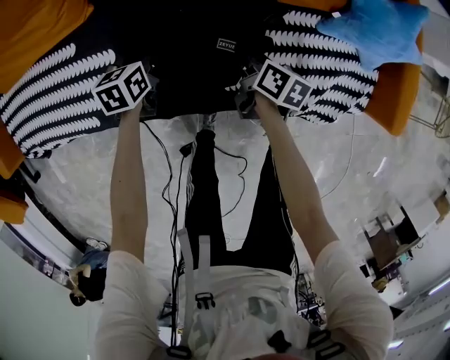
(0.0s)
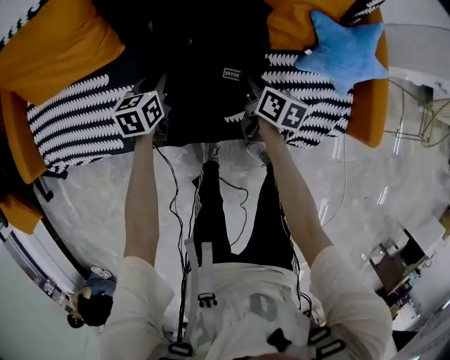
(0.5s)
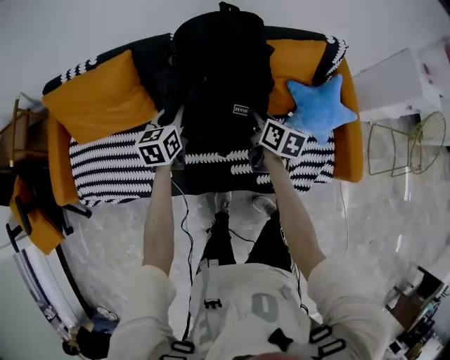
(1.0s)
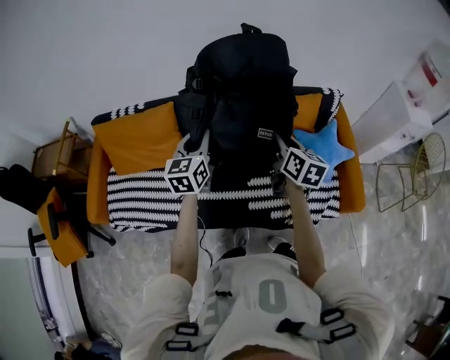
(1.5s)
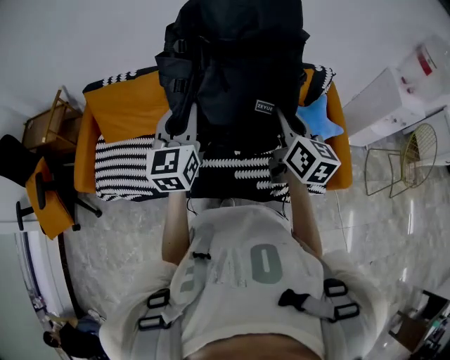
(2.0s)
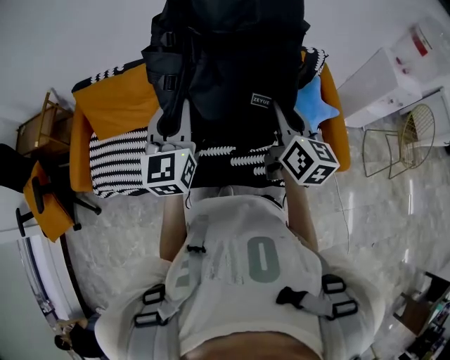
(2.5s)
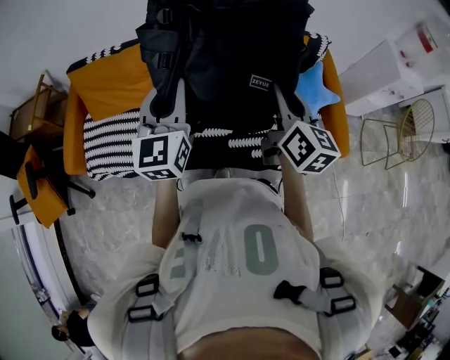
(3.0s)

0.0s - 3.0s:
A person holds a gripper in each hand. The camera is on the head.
0.0s - 1.5s: Both grippers move upward, some 50 cm. The left gripper points its fingers roughly 30 degrees further upward; the right gripper swivels some 30 degrees.
1.5s - 3.0s: Both grippers move backward and upward, some 15 cm.

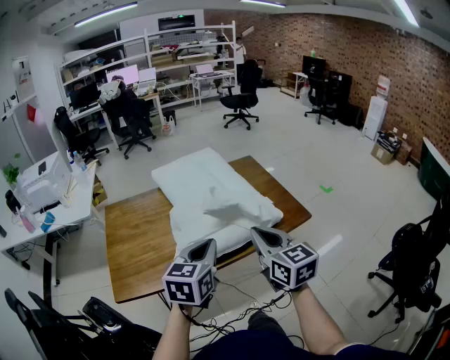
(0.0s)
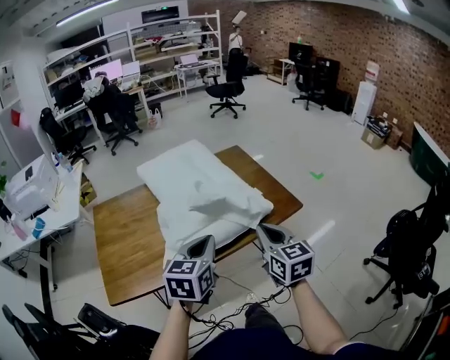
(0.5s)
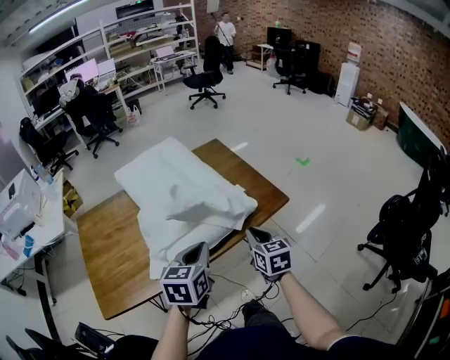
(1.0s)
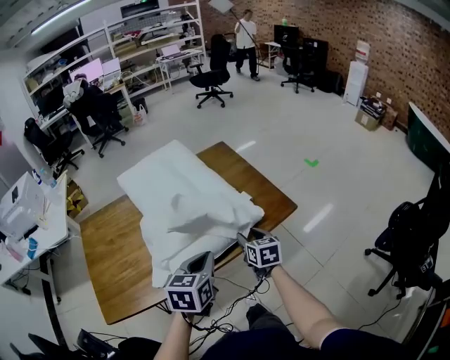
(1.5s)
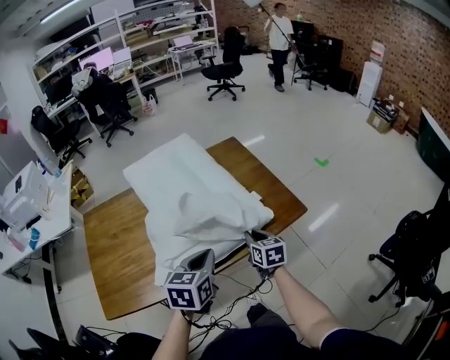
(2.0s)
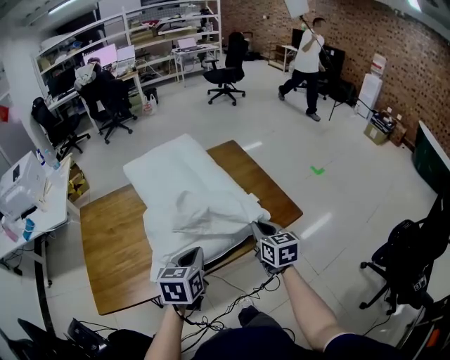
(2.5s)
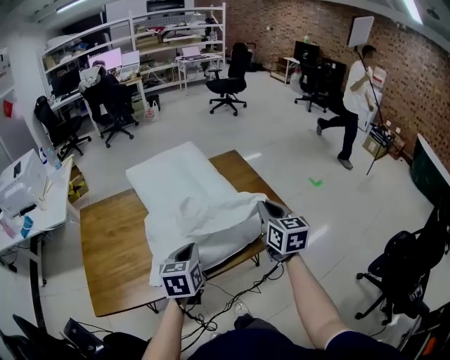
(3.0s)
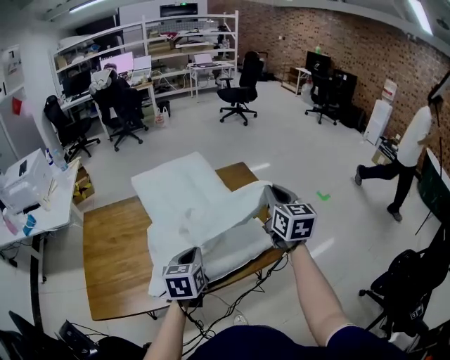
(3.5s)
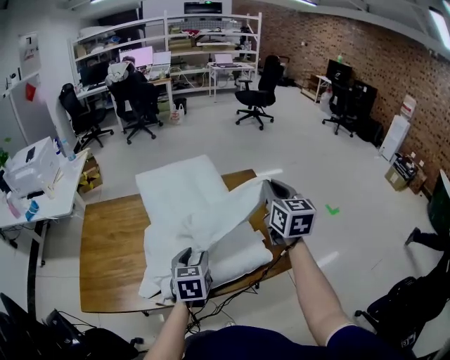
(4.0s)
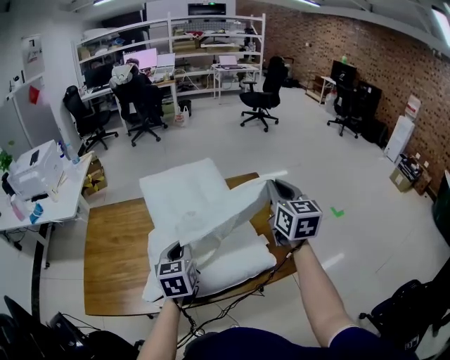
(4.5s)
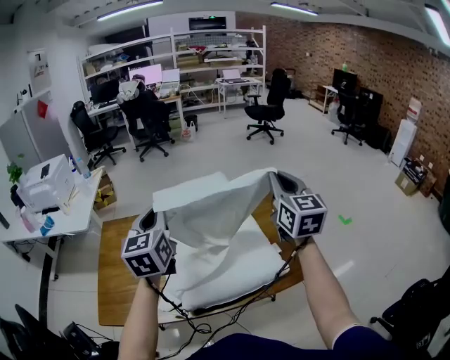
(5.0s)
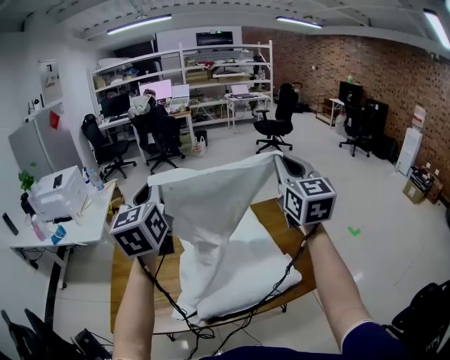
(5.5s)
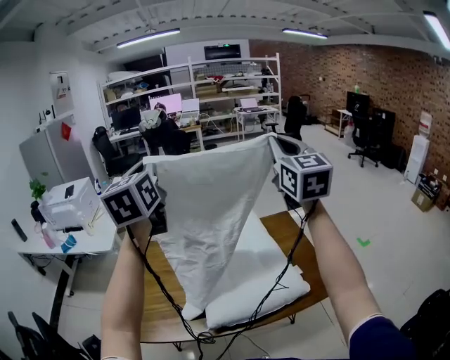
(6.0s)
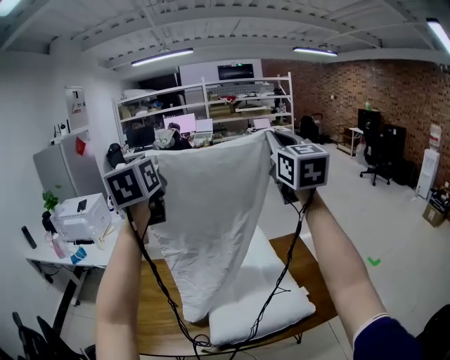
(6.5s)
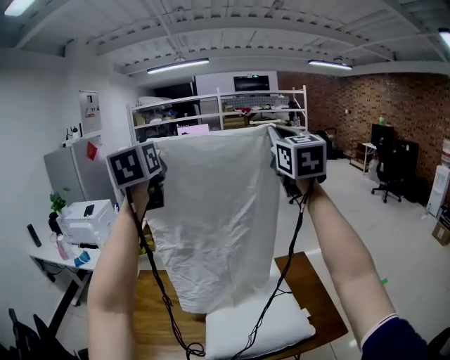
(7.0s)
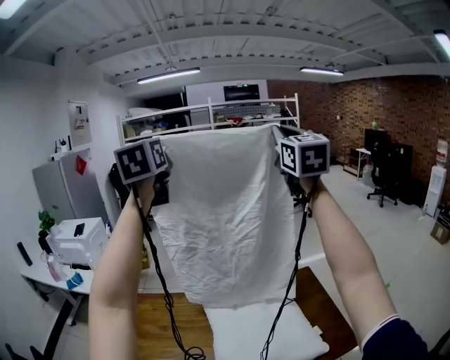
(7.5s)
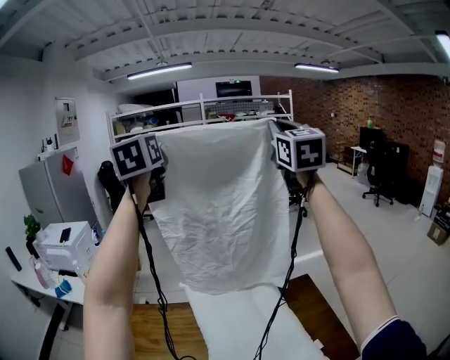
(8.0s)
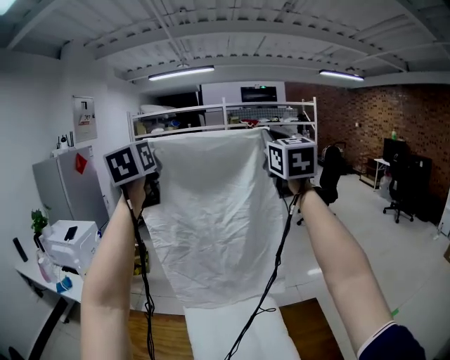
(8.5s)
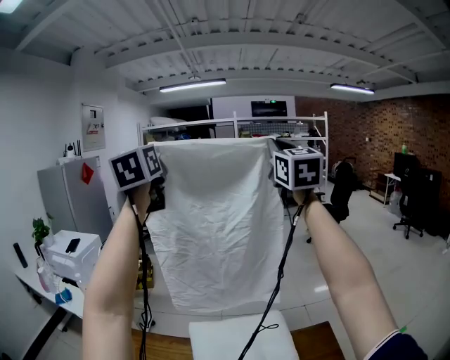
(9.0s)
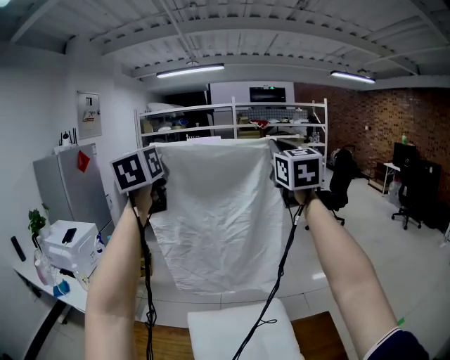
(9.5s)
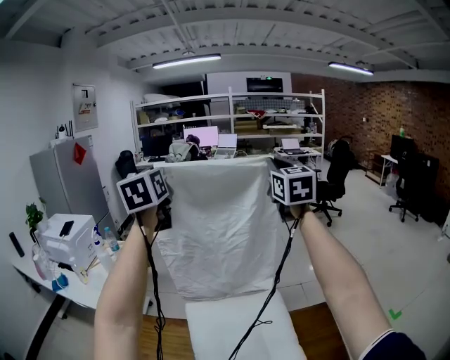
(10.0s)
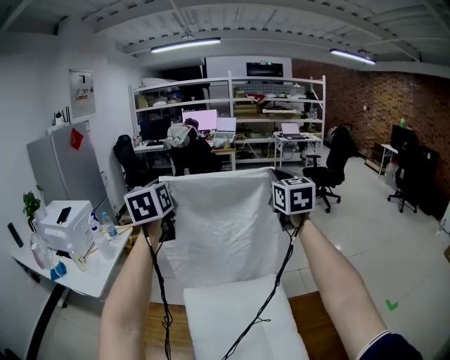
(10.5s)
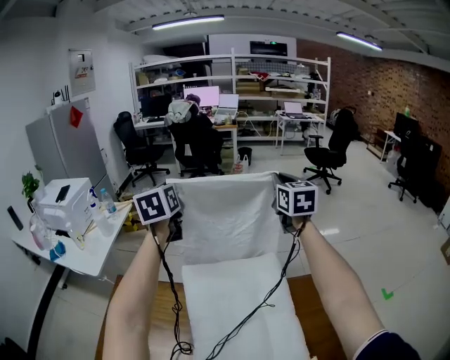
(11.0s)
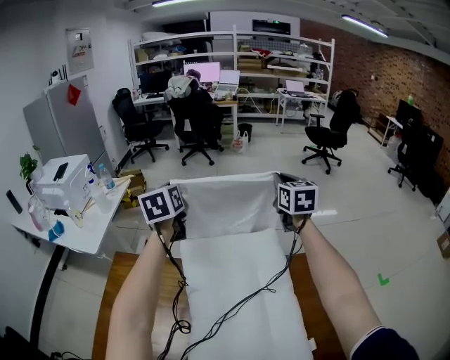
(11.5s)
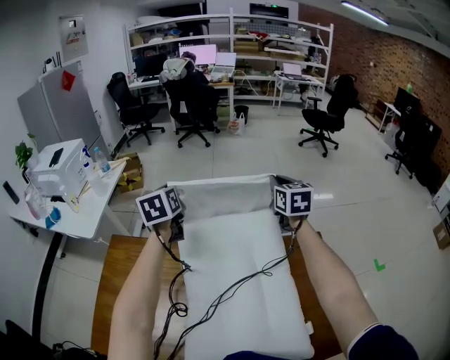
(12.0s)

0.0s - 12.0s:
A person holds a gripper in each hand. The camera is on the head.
0.0s - 2.0s: The right gripper moves downward and forward, about 30 cm, turns by roughly 30 degrees, and opens, then closes once more; the left gripper goes approximately 10 cm downward and forward.
2.0s - 4.0s: The right gripper heads upward and forward, covering about 35 cm, and swivels about 30 degrees, while the left gripper goes some 10 cm forward, turns by some 20 degrees, and opens.
4.0s - 6.0s: The left gripper moves upward and to the left, about 50 cm, tilts its fingers roughly 40 degrees upward, and closes. Meanwhile the right gripper heads upward and to the left, covering approximately 30 cm, and swivels approximately 20 degrees.
6.0s - 8.0s: Both grippers move forward and upward, about 30 cm.
8.0s - 10.0s: The two grippers go roughly 20 cm forward and downward.
10.0s - 12.0s: Both grippers travel together downward, roughly 35 cm. The right gripper rotates approximately 30 degrees; the left gripper rotates approximately 30 degrees.

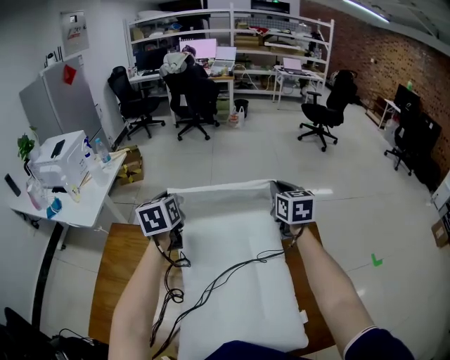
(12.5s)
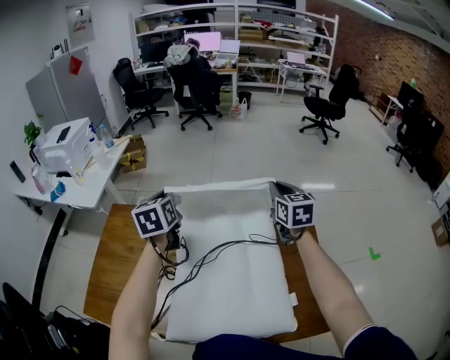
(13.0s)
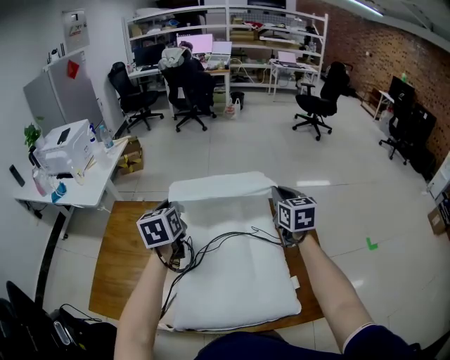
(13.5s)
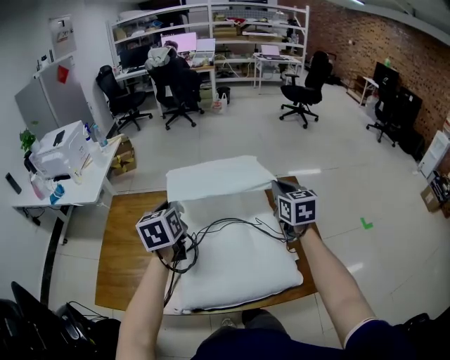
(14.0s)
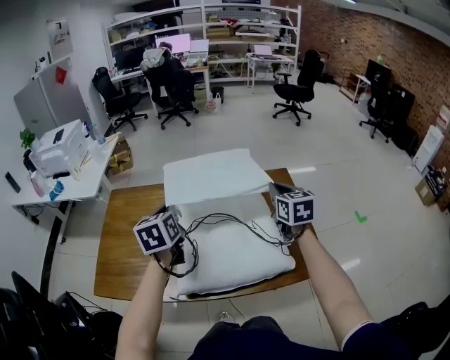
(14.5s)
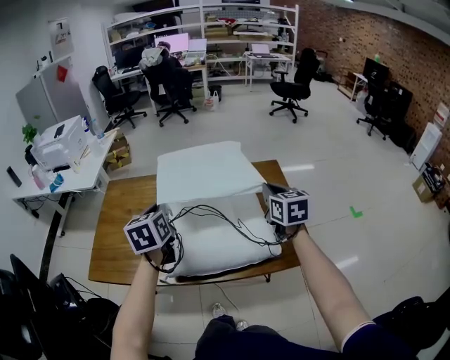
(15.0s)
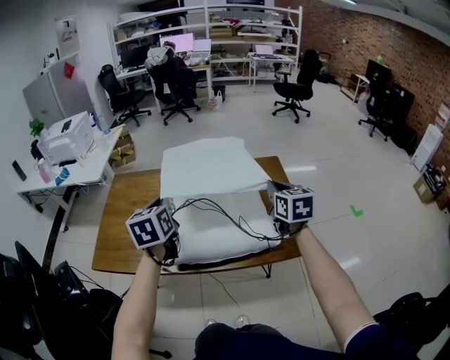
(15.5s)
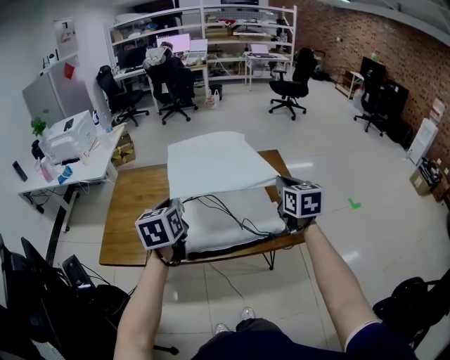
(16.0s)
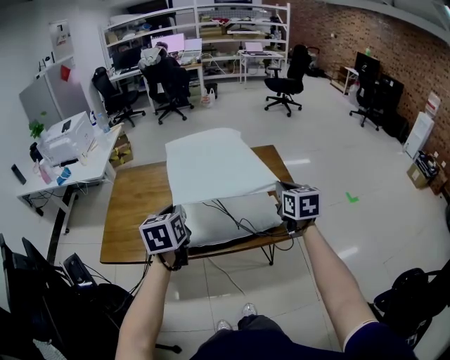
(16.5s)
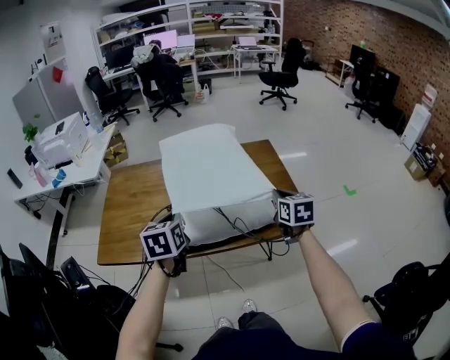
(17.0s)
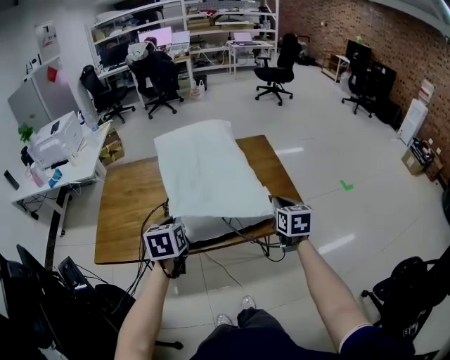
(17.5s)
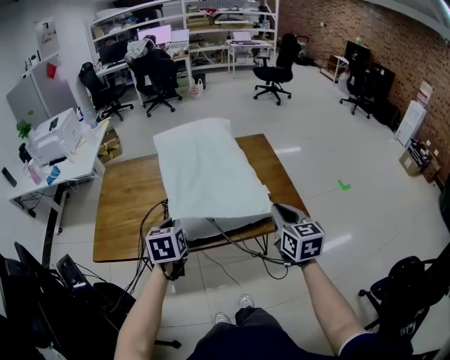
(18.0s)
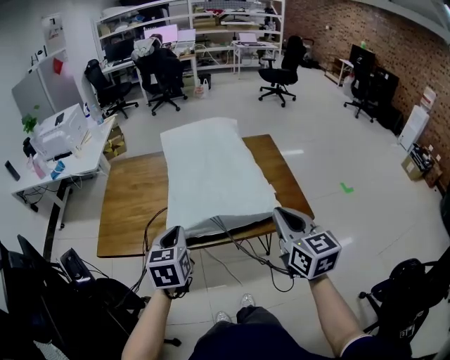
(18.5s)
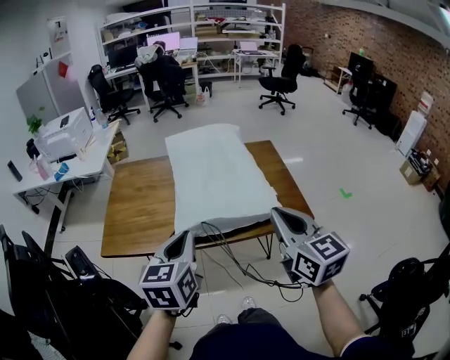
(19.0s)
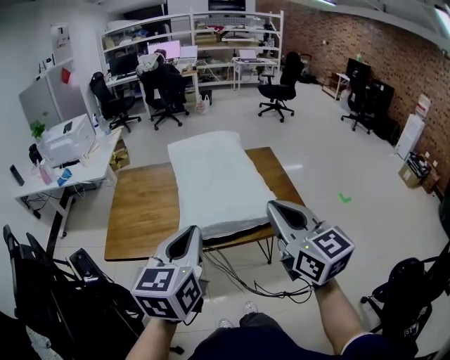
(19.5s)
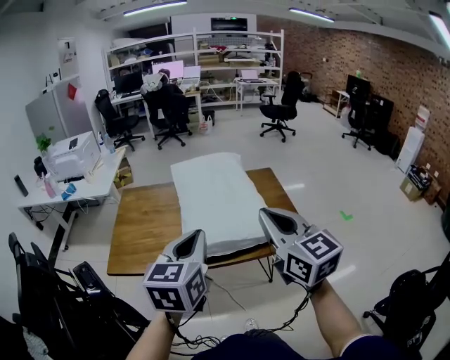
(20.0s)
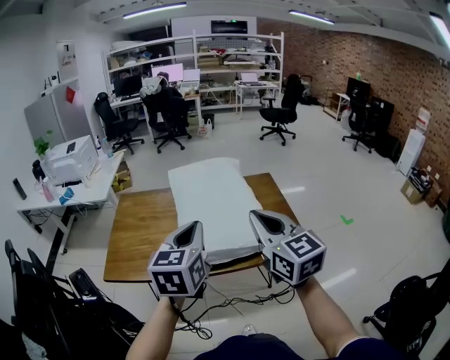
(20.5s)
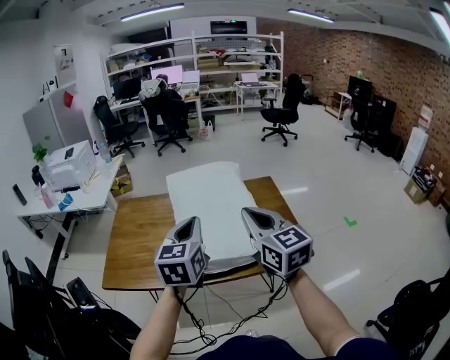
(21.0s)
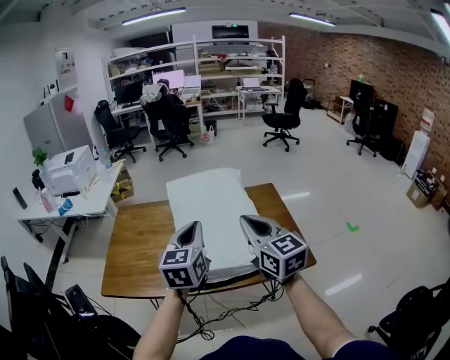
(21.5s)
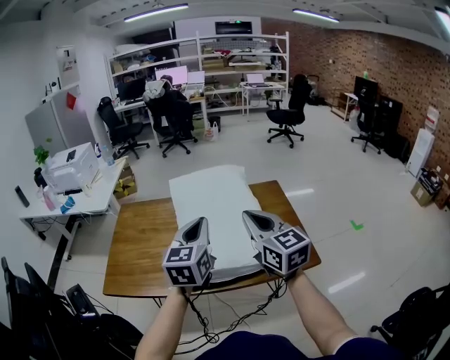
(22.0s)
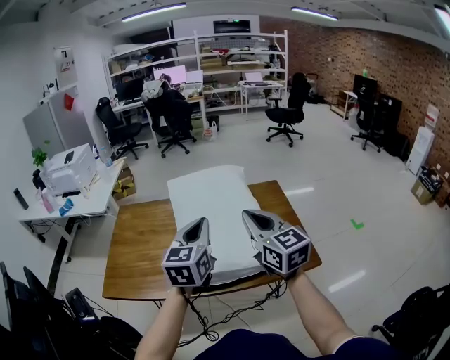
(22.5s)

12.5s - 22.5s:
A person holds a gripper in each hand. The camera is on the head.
12.5s - 14.5s: Both grippers move backward, approximately 30 cm.
14.5s - 16.5s: The grippers both shift backward by some 15 cm.
16.5s - 18.5s: The left gripper travels backward by roughly 10 cm. Meanwhile the right gripper shifts roughly 15 cm backward and to the left.
18.5s - 20.5s: The left gripper shifts roughly 15 cm upward, while the right gripper is displaced upward and to the left by about 15 cm.
20.5s - 22.5s: Both grippers travel together forward, some 10 cm.

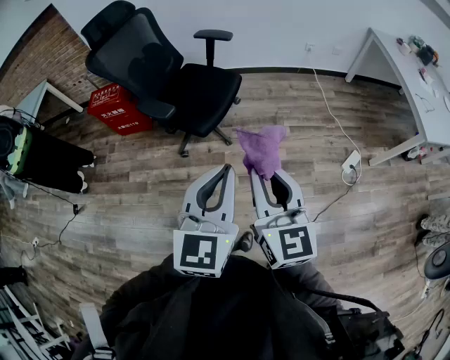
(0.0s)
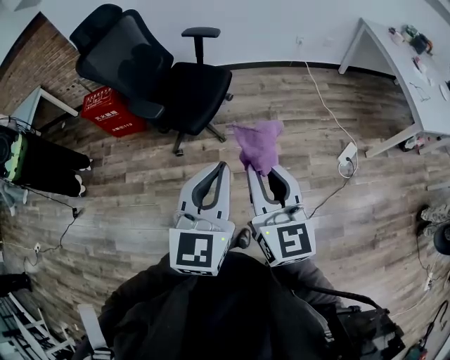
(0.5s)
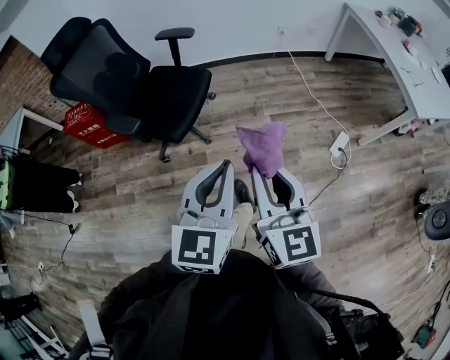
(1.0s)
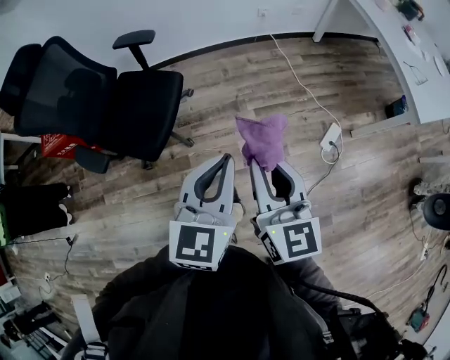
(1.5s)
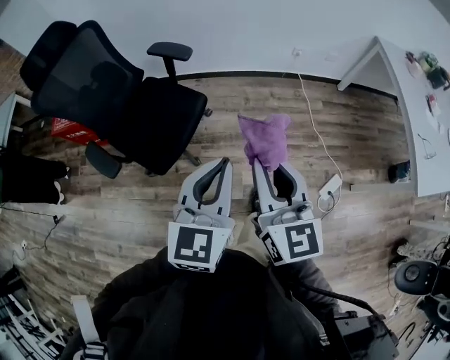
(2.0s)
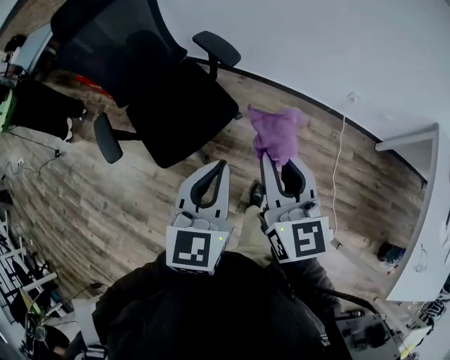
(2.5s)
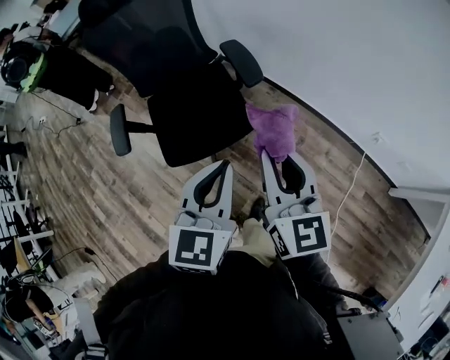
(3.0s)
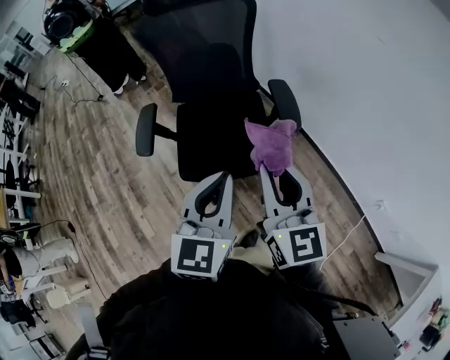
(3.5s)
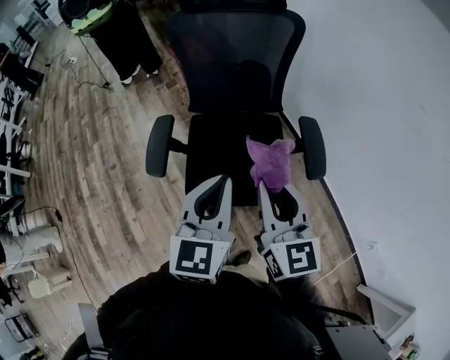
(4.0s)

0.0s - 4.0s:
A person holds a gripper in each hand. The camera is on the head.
0.0s - 2.0s: Both grippers move forward and to the right, some 40 cm.
2.0s - 4.0s: The pair of grippers is taken about 40 cm. The right gripper rotates roughly 60 degrees; the left gripper turns by about 60 degrees.
